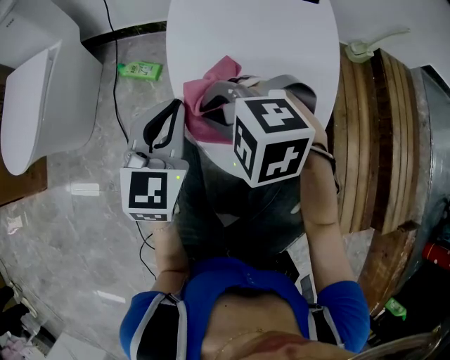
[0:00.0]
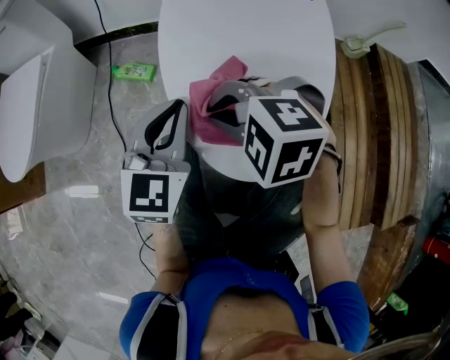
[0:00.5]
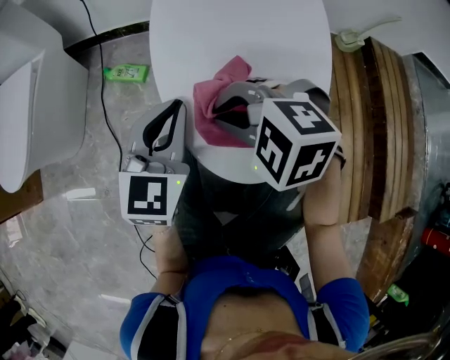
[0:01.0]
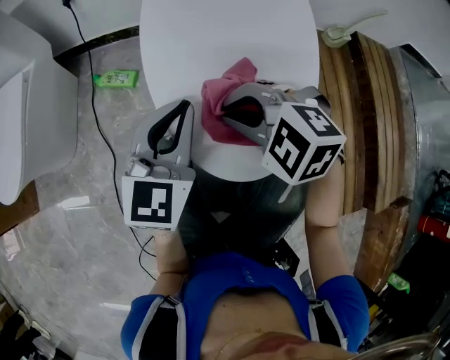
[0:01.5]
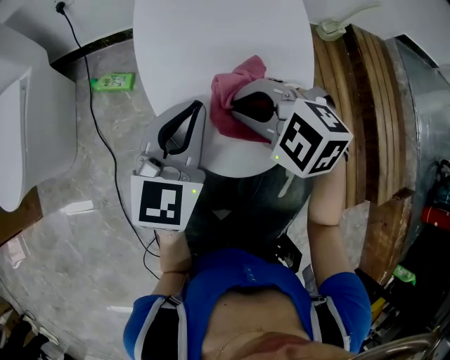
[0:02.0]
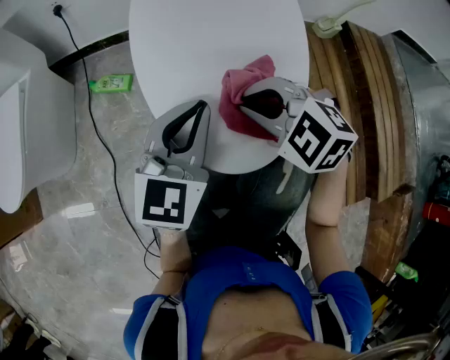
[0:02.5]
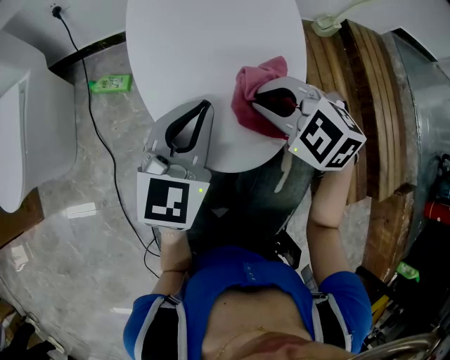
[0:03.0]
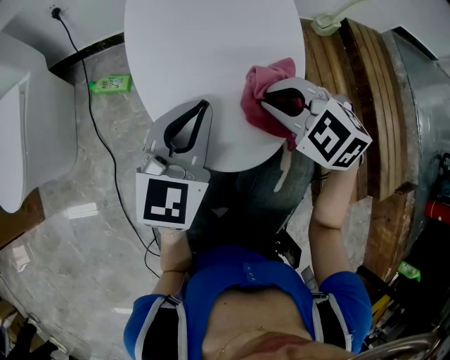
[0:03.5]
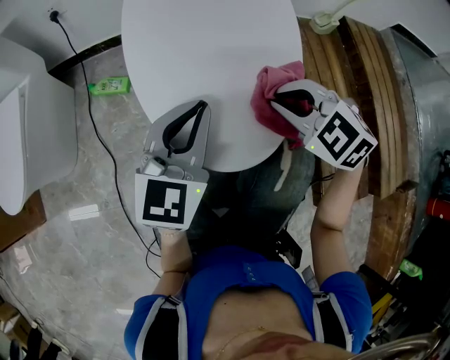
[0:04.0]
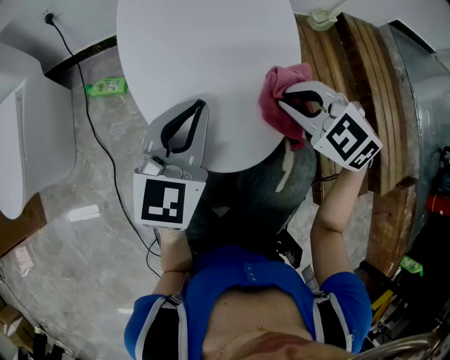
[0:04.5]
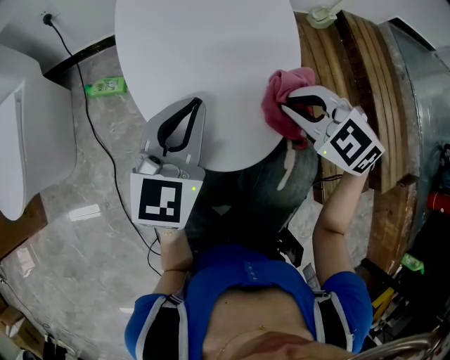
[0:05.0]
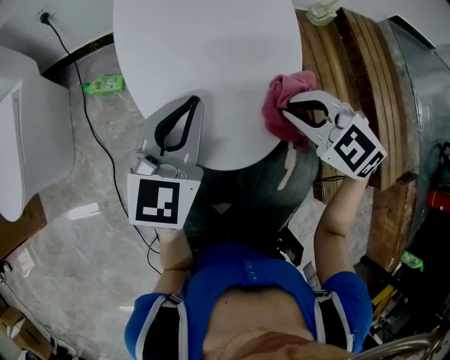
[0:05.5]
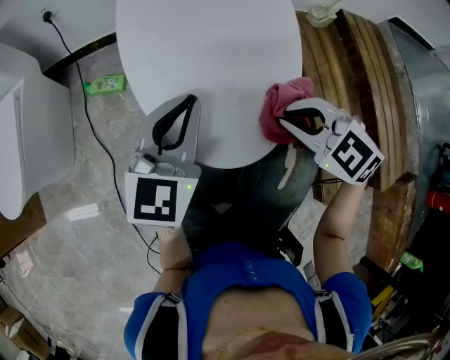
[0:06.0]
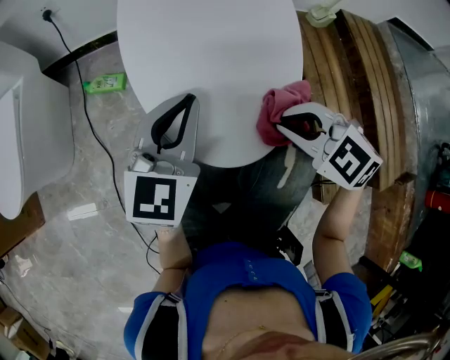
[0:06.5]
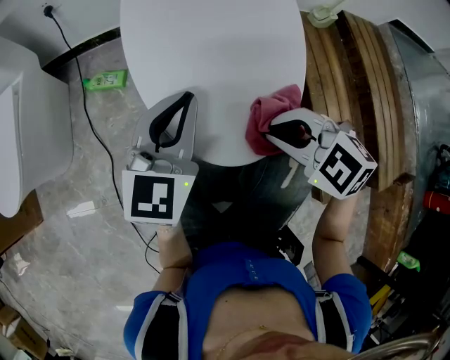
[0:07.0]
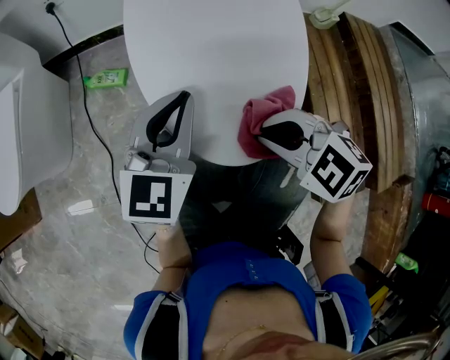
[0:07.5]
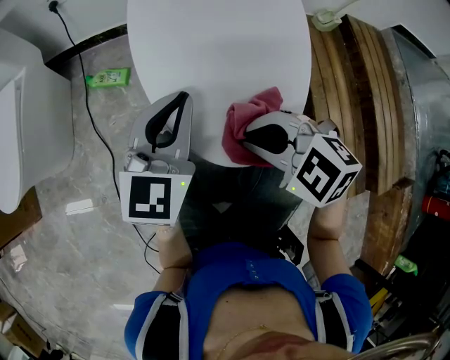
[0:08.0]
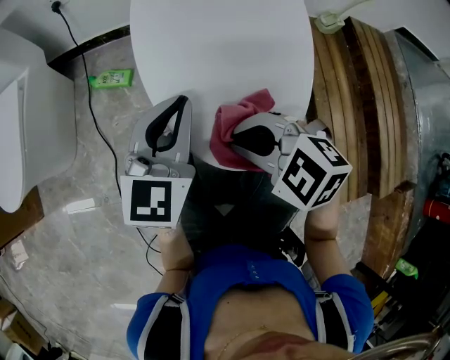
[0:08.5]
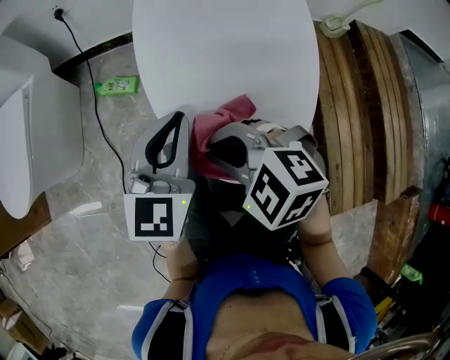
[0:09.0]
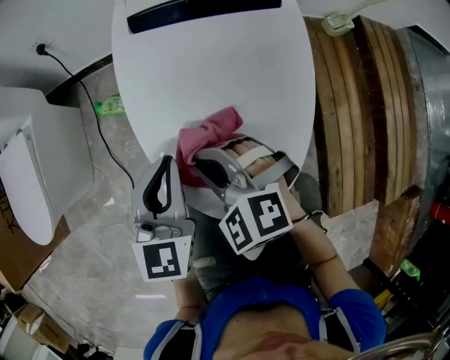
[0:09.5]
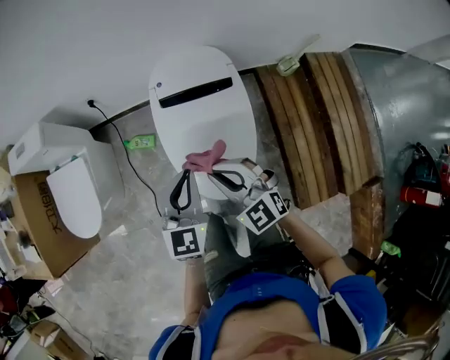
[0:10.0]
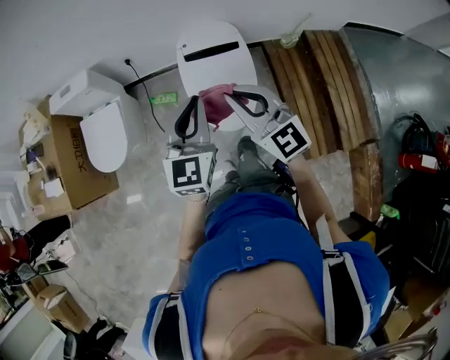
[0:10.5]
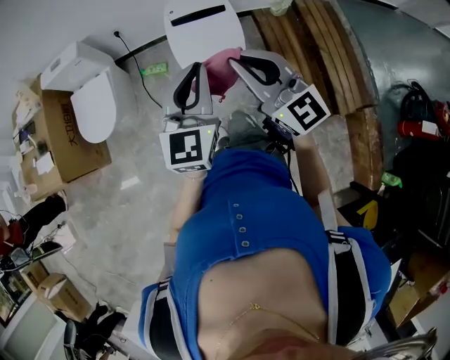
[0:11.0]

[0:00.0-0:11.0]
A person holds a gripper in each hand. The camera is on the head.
0:00.0 to 0:02.0: The grippers both shift to the right by some 10 cm.
0:02.0 to 0:03.5: The right gripper travels to the right by roughly 10 cm.
0:03.5 to 0:05.5: The right gripper ends up some 5 cm from where it was.
0:05.5 to 0:07.5: The right gripper shifts some 10 cm to the left.
0:07.5 to 0:09.0: The right gripper travels to the left and forward by approximately 10 cm.
0:09.0 to 0:11.0: Both grippers travel together upward, roughly 60 cm. The right gripper angles its fingers upward, by about 50 degrees.

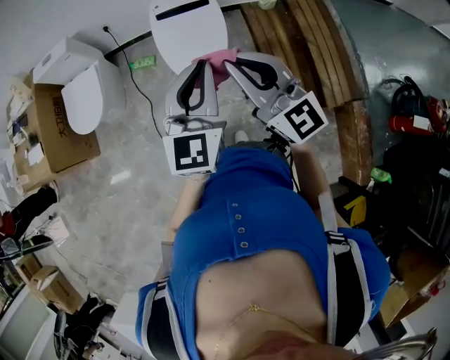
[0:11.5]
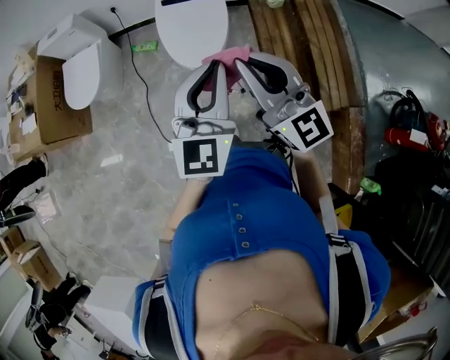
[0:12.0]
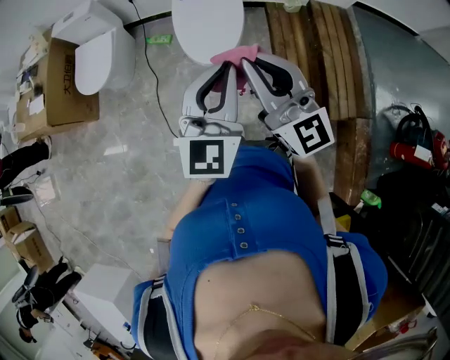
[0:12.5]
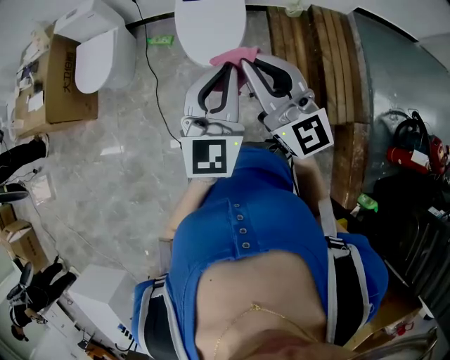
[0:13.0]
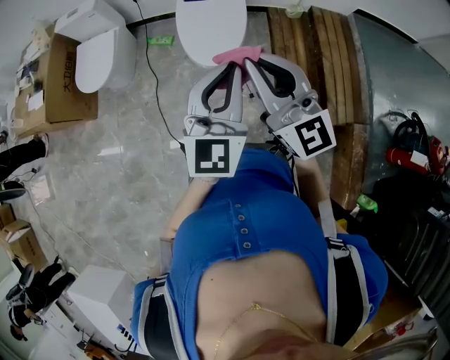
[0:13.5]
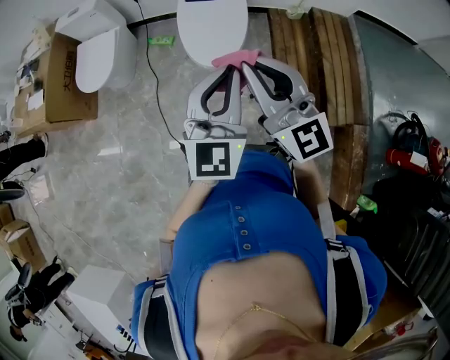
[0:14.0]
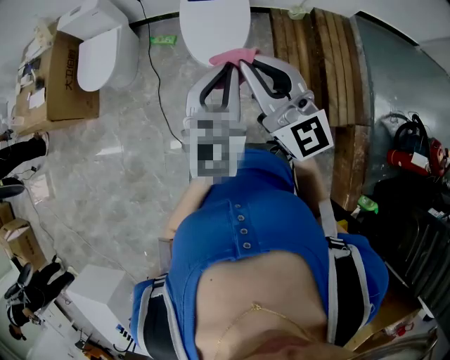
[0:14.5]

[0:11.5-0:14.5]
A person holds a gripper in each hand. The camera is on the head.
0:11.5 to 0:13.0: The grippers both shift backward by some 10 cm.
0:13.0 to 0:14.5: The grippers stay close to where they were, moving slightly.

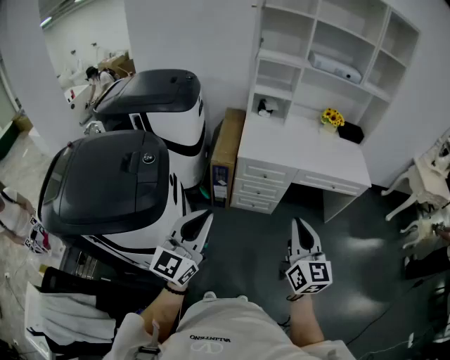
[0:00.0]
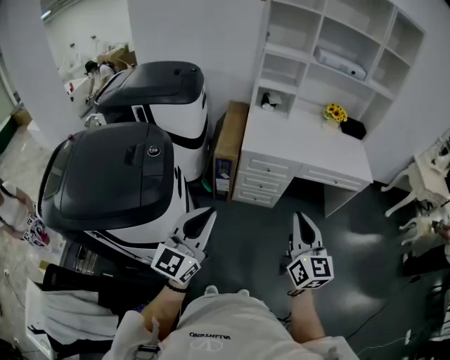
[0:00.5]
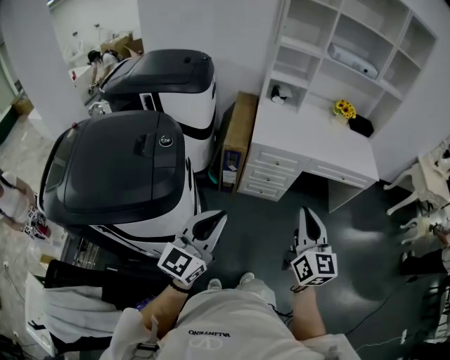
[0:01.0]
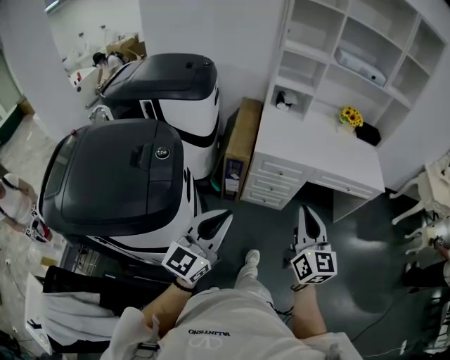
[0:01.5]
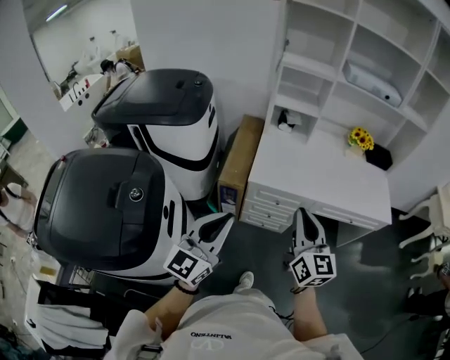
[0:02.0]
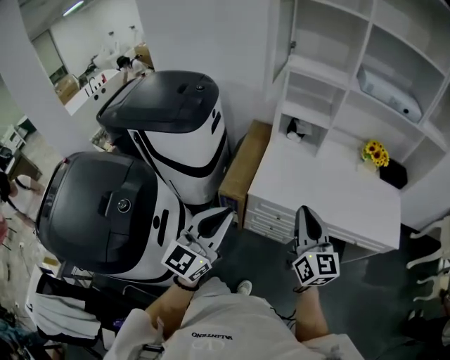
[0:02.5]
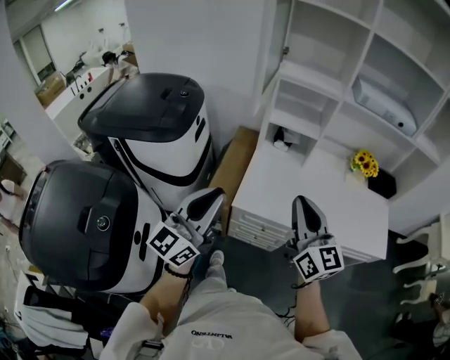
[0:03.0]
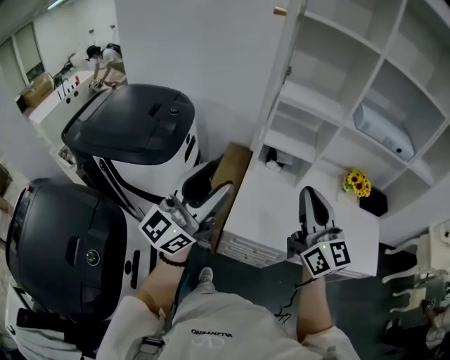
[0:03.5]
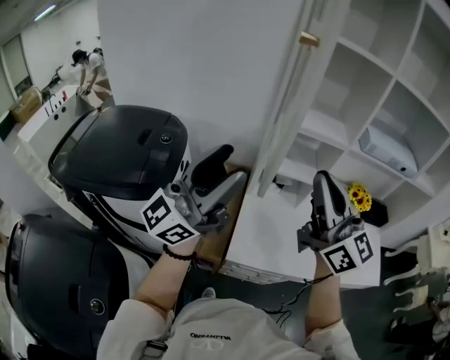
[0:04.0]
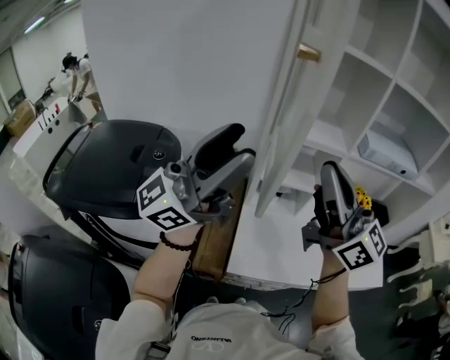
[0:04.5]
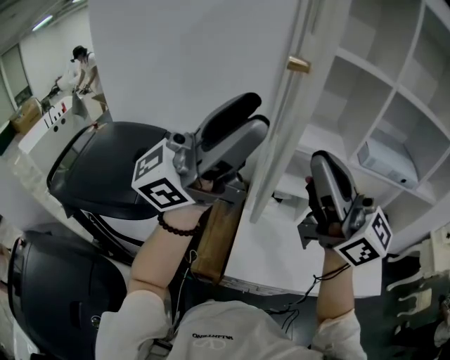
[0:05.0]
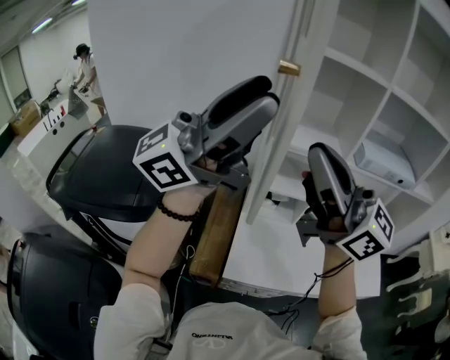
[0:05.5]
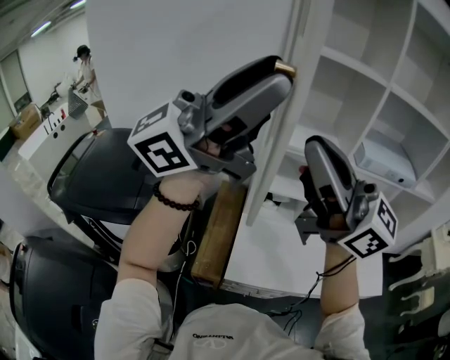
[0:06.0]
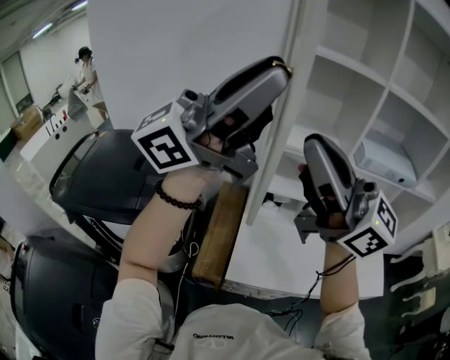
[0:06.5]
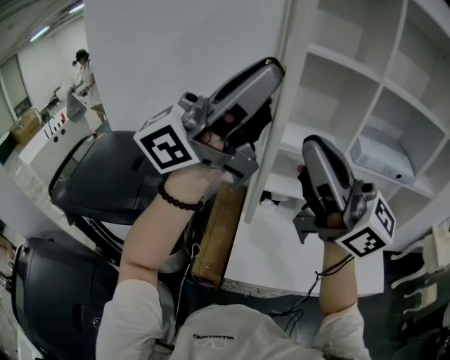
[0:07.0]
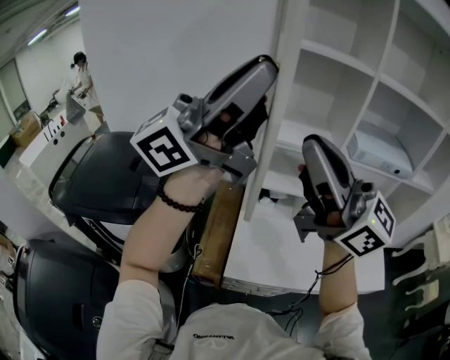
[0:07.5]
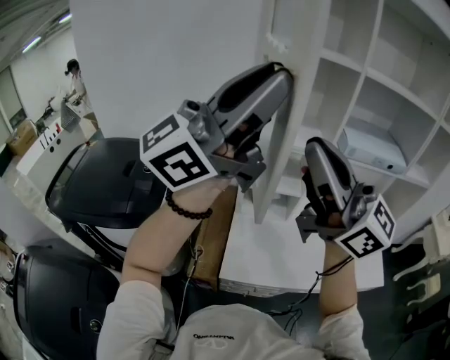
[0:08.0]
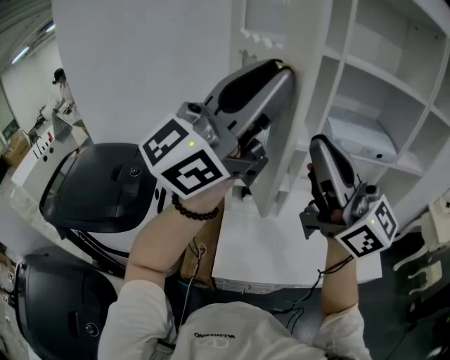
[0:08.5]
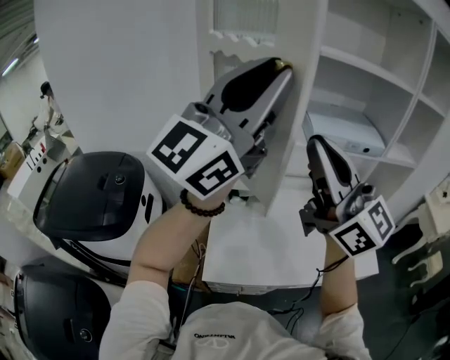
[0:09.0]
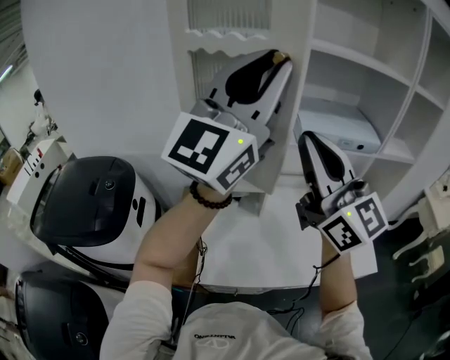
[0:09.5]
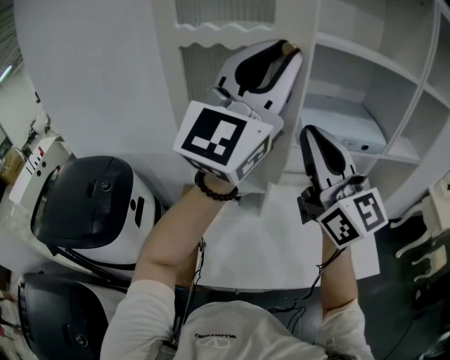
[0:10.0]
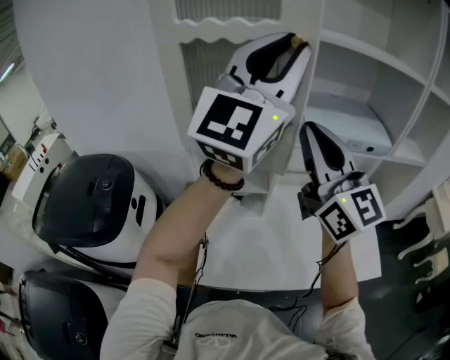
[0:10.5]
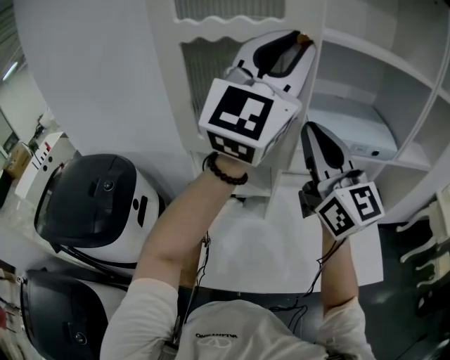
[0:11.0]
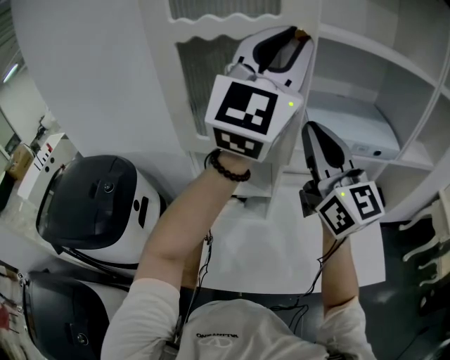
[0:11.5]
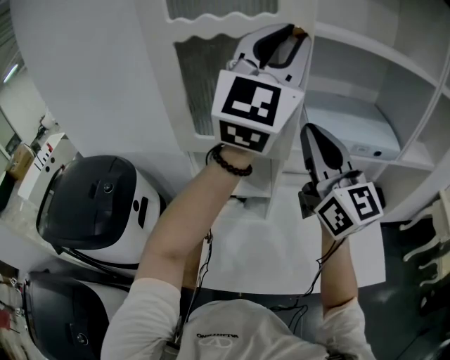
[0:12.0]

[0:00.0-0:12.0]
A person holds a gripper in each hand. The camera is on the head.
0:00.0 to 0:02.0: Both grippers move forward, roughly 25 cm.
0:02.0 to 0:04.0: Both grippers travel together forward and upward, some 40 cm. The left gripper points its fingers some 30 degrees further upward, and opens up, while the right gripper swivels roughly 30 degrees.
0:04.0 to 0:06.0: The left gripper travels upward by roughly 20 cm, and changes its angle by some 30 degrees. The right gripper heads upward, covering roughly 15 cm, and turns by some 20 degrees.
0:06.0 to 0:08.0: The right gripper ends up some 5 cm from where it was; the left gripper ends up some 5 cm from where it was, and closes up.
0:08.0 to 0:10.0: The grippers both shift to the right and forward by about 25 cm. The left gripper changes its angle by approximately 40 degrees. The right gripper rotates approximately 30 degrees.
0:10.0 to 0:12.0: The grippers both shift forward by about 10 cm.

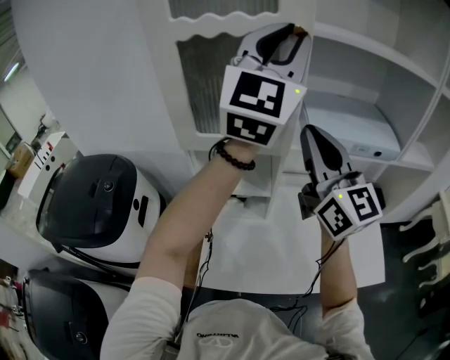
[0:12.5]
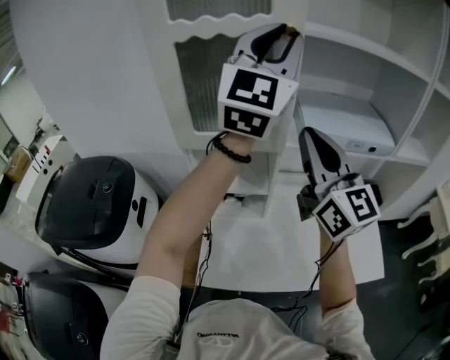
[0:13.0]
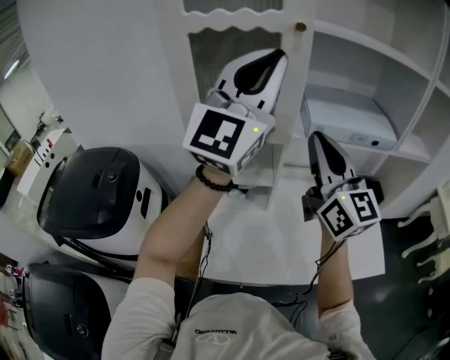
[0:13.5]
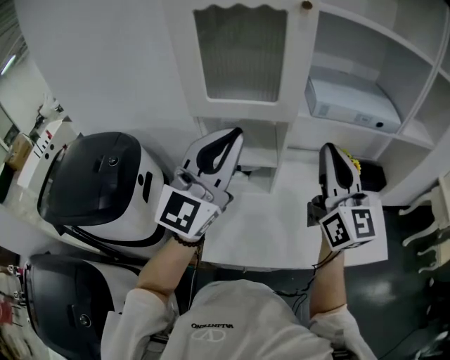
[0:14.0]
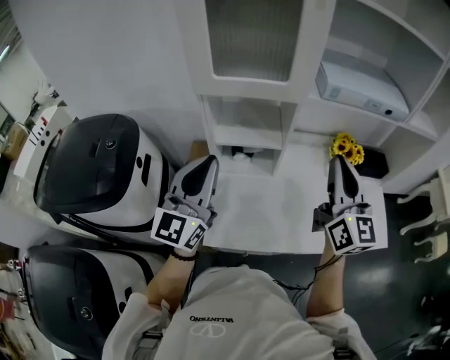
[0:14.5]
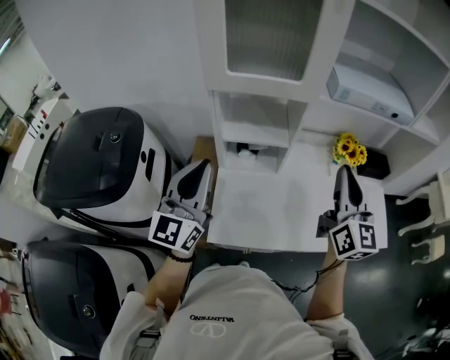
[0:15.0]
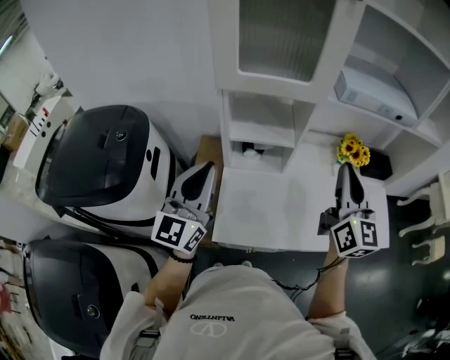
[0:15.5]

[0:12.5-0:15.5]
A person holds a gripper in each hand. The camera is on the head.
0:12.5 to 0:14.0: The right gripper shifts some 10 cm downward and backward. Meanwhile the left gripper heads downward, backward and to the left, covering approximately 25 cm.
0:14.0 to 0:15.5: The right gripper moves downward, roughly 10 cm, while the left gripper moves downward and to the left, roughly 20 cm, and swivels approximately 20 degrees.
